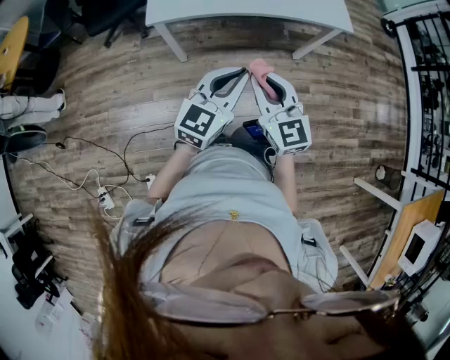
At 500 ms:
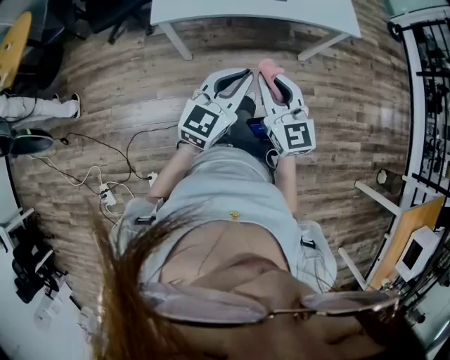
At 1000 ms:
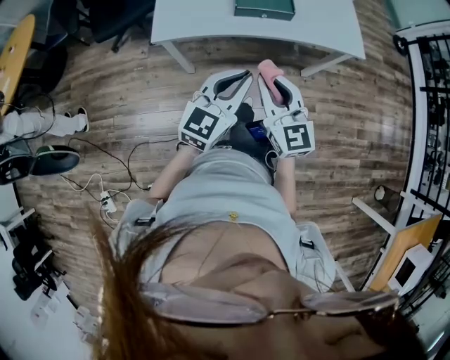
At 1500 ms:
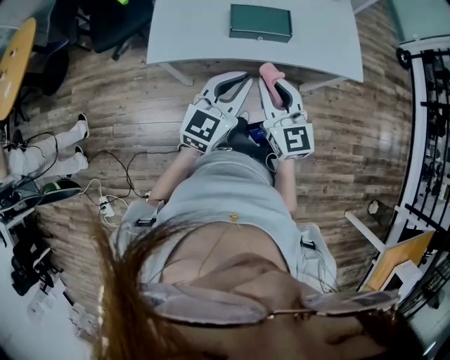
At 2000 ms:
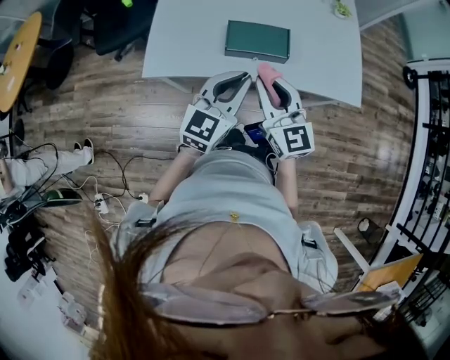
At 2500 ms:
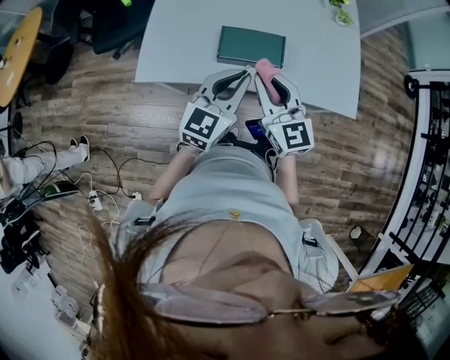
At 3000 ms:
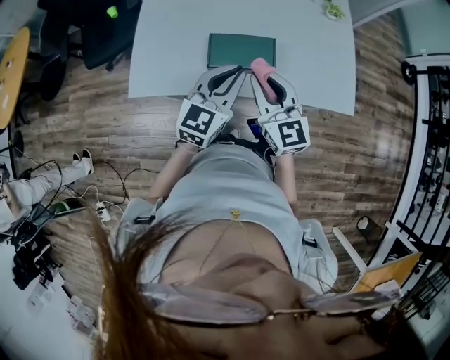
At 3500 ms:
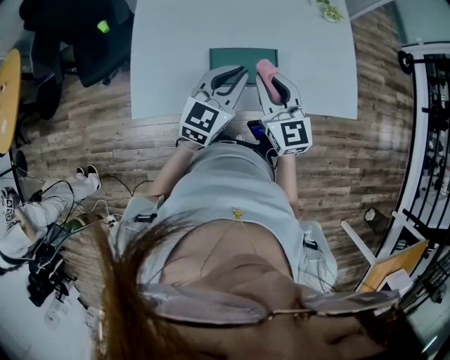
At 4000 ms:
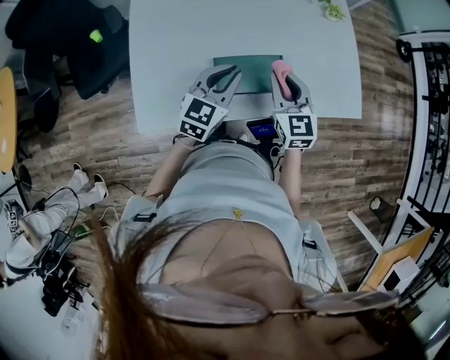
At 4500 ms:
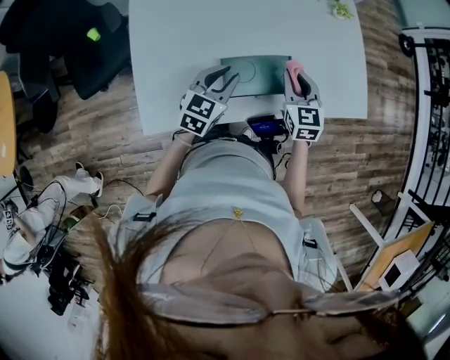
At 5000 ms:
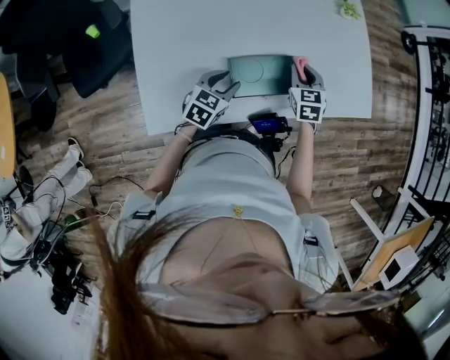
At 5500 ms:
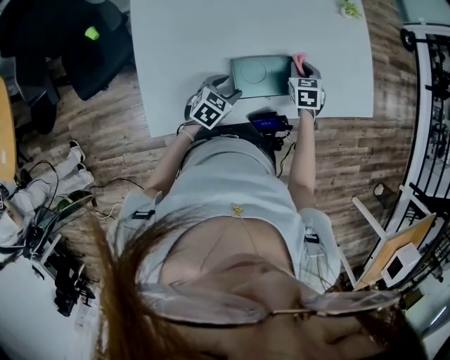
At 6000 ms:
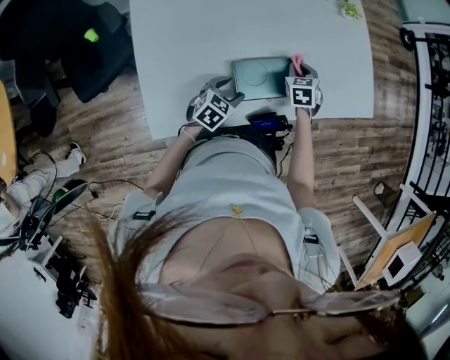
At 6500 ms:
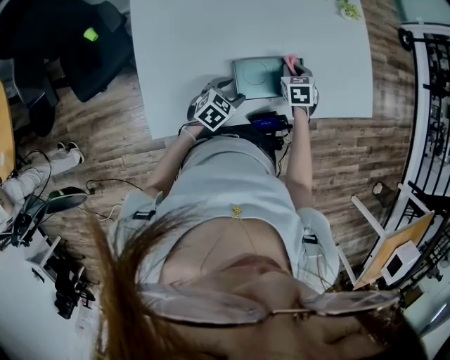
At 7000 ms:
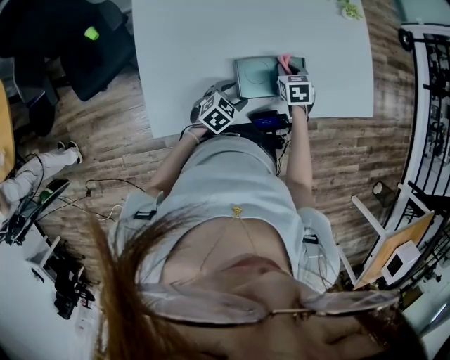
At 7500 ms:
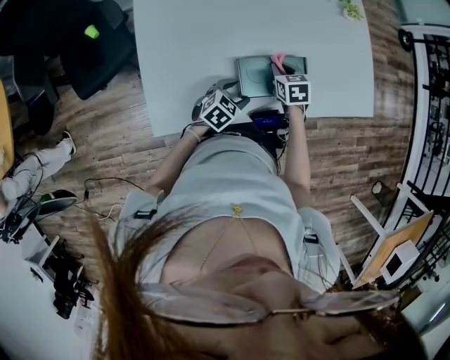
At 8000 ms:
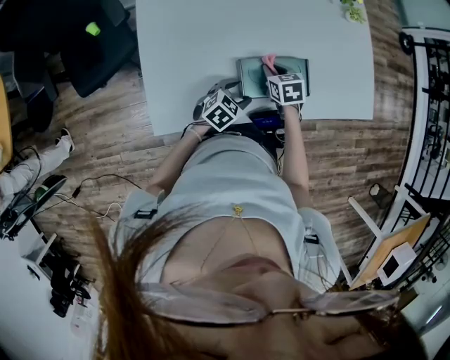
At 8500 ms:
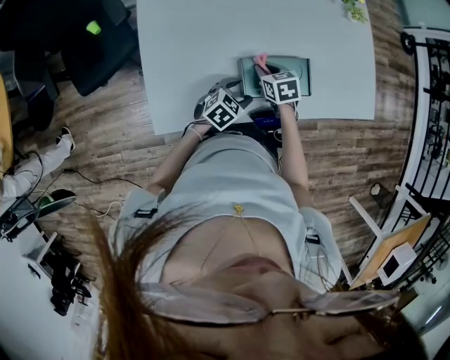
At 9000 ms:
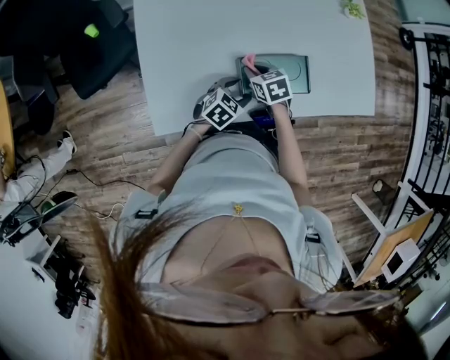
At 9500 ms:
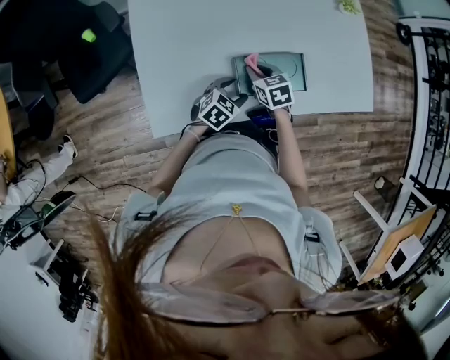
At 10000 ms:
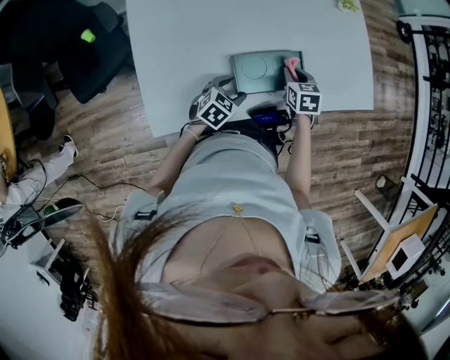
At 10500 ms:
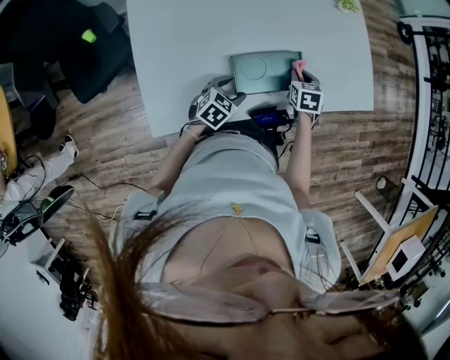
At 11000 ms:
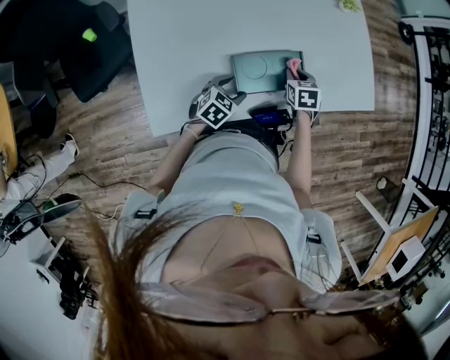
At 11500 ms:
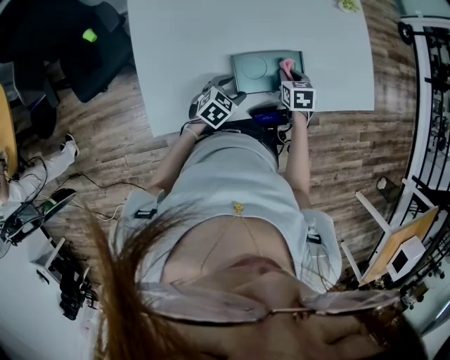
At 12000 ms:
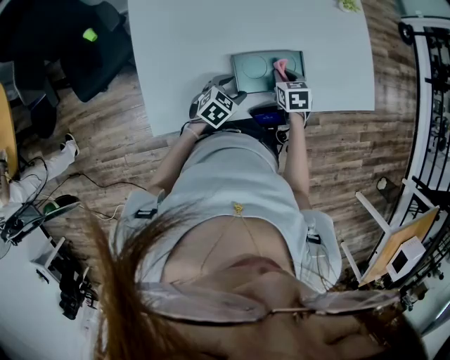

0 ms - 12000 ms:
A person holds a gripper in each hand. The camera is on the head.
0 ms - 2000 ms: Both grippers travel together forward, some 30 cm.
2000 ms - 4000 ms: The grippers both shift forward by roughly 20 cm. The right gripper changes its angle by roughly 20 degrees.
4000 ms - 6000 ms: The right gripper is displaced downward and forward by about 20 cm, and tips its fingers downward by about 30 degrees. The left gripper goes some 20 cm downward, swivels some 30 degrees, and opens its fingers.
6000 ms - 8000 ms: The right gripper moves to the left and backward, some 10 cm, and swivels about 20 degrees.
8000 ms - 10000 ms: The right gripper shifts about 10 cm to the right.
10000 ms - 12000 ms: The grippers make only small movements.

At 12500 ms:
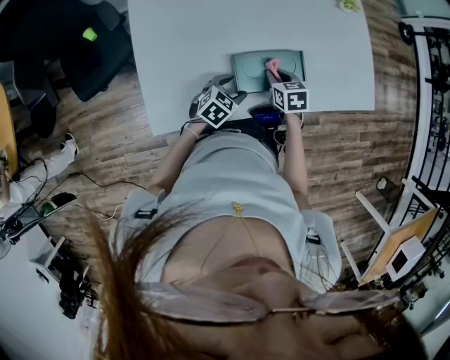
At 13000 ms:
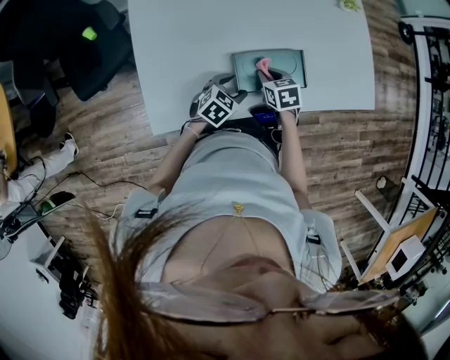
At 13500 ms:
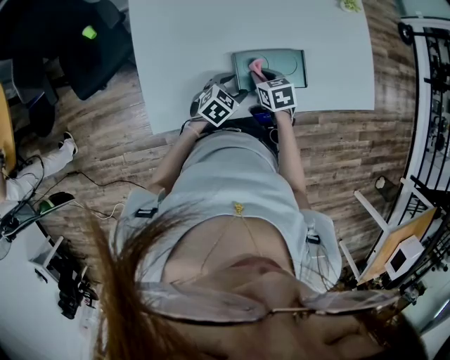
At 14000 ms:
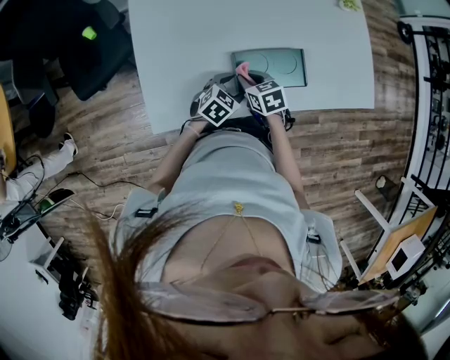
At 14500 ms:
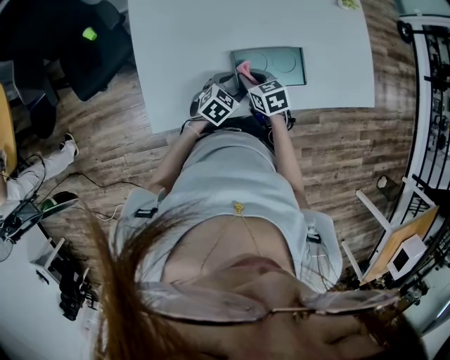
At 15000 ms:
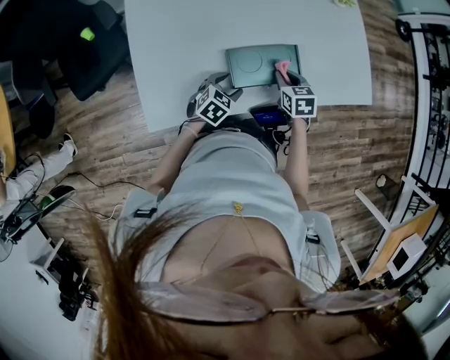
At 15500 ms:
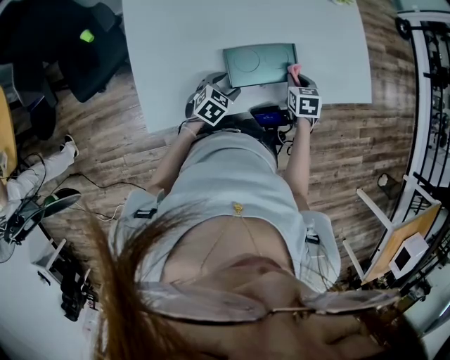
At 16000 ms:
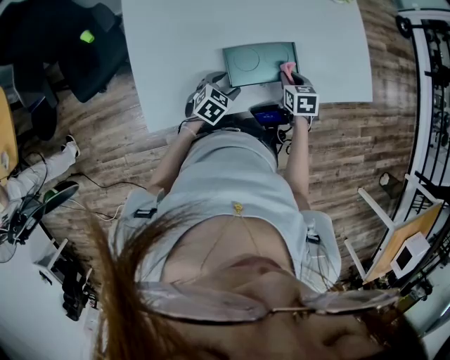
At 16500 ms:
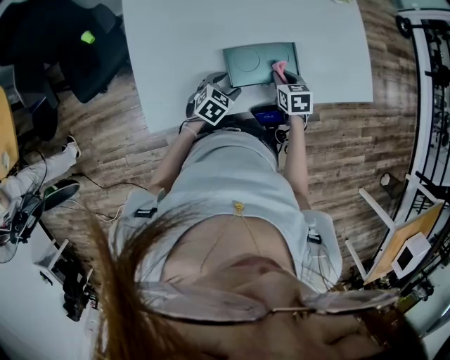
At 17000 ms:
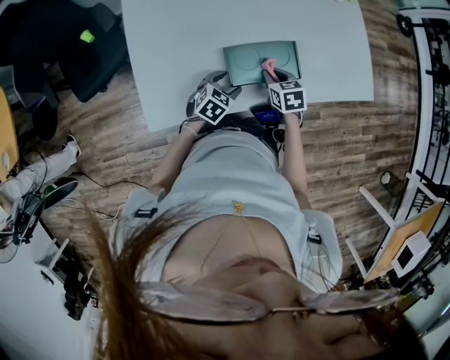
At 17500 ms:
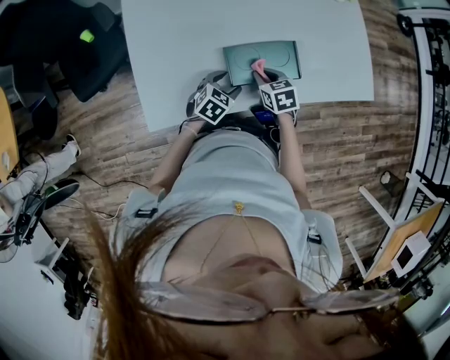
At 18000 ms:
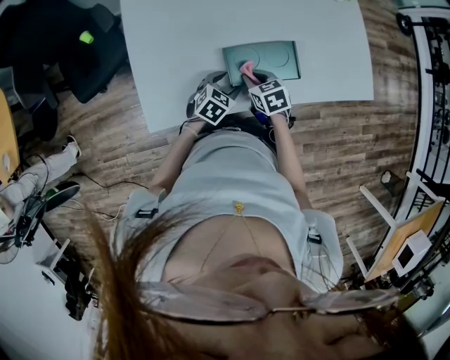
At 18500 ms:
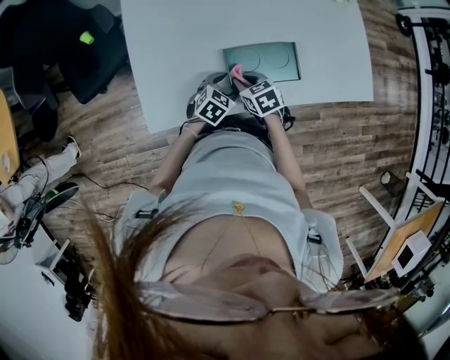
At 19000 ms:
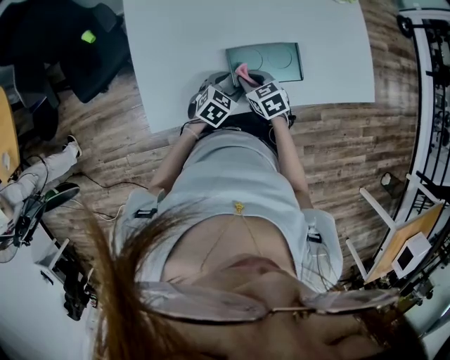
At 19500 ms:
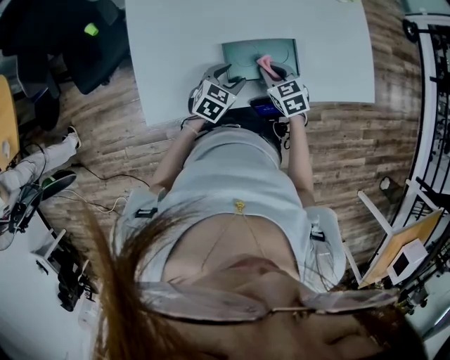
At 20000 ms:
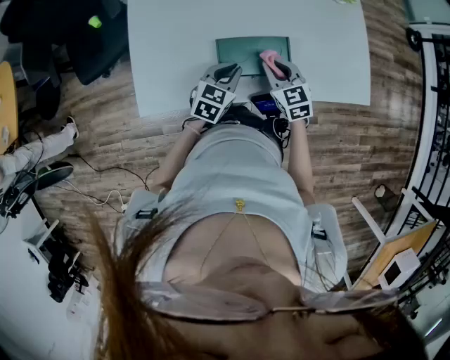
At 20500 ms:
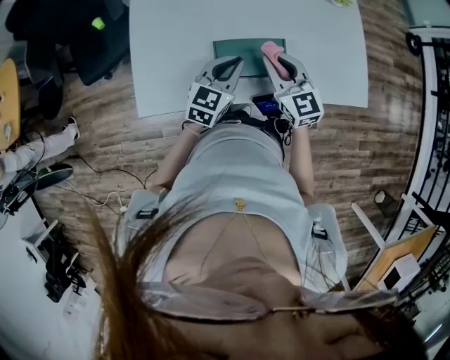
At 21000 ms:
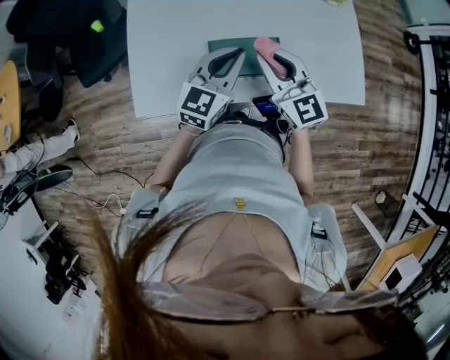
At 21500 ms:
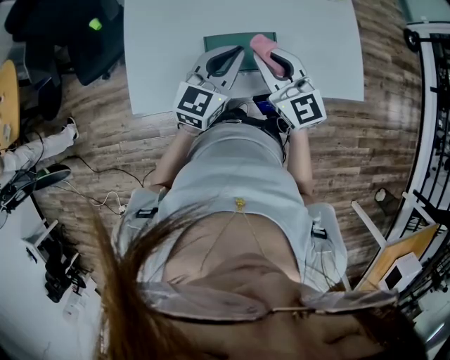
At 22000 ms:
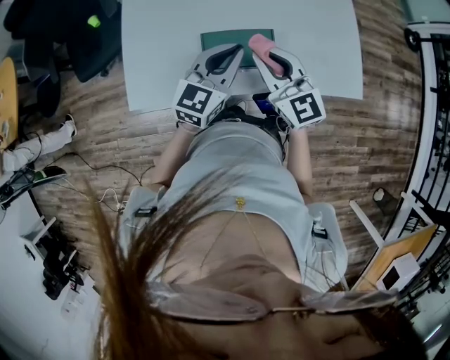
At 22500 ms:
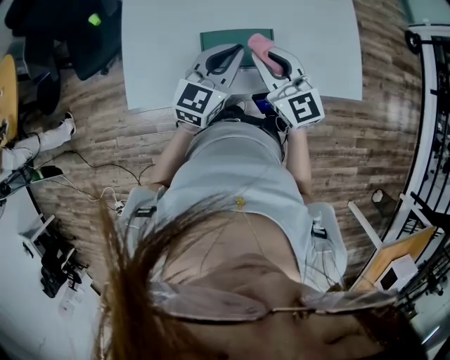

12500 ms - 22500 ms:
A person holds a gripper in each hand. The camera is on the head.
12500 ms - 14500 ms: The right gripper travels to the left by roughly 10 cm.
14500 ms - 16500 ms: The right gripper heads to the right, covering some 15 cm.
16500 ms - 18500 ms: The right gripper heads to the left, covering approximately 15 cm, and changes its angle by about 20 degrees.
18500 ms - 20500 ms: The left gripper moves upward, some 15 cm, turns by about 30 degrees, and closes its fingers. Meanwhile the right gripper goes roughly 20 cm upward and to the right, and points its fingers approximately 40 degrees further upward.
20500 ms - 22500 ms: Both grippers move upward, roughly 5 cm.

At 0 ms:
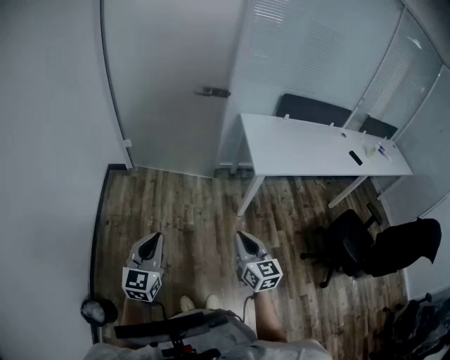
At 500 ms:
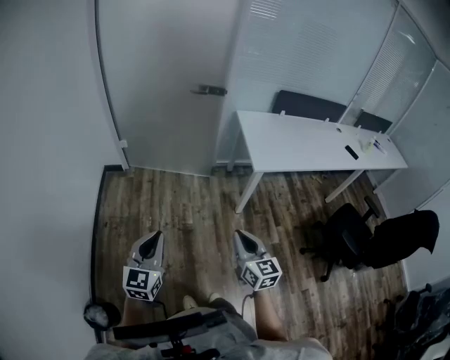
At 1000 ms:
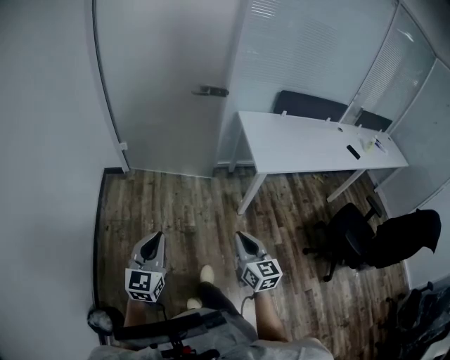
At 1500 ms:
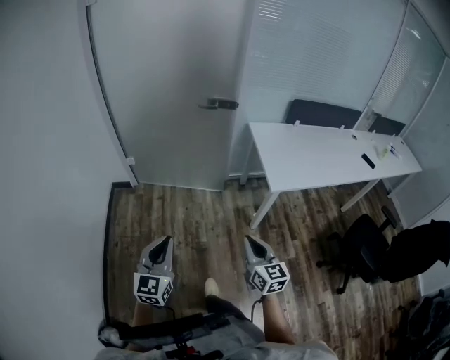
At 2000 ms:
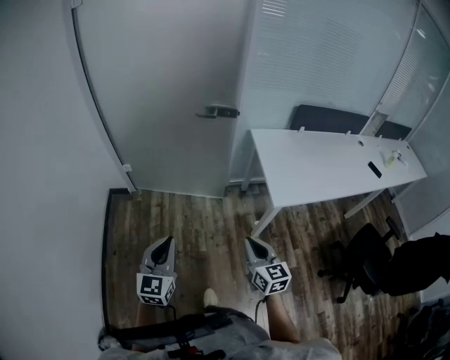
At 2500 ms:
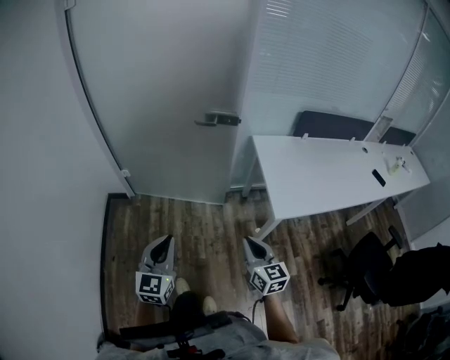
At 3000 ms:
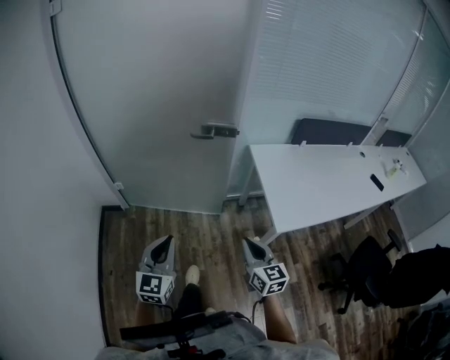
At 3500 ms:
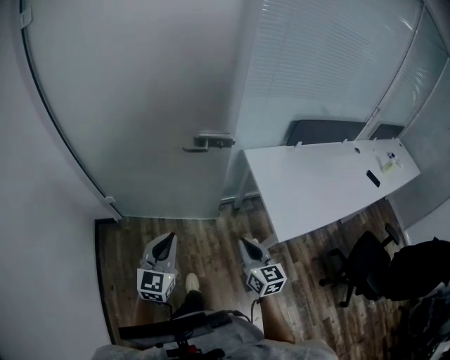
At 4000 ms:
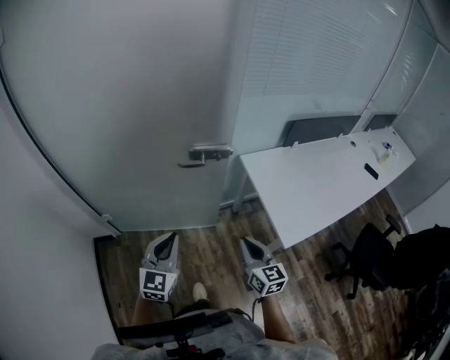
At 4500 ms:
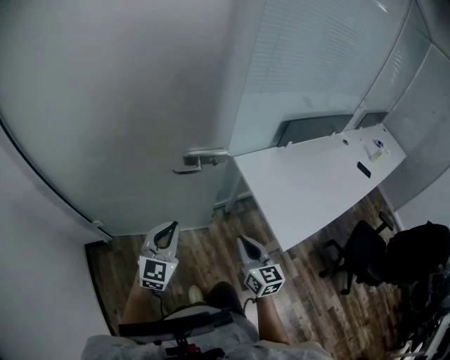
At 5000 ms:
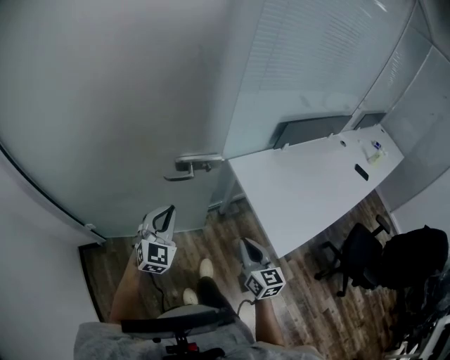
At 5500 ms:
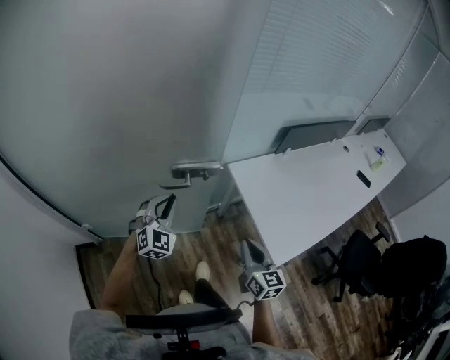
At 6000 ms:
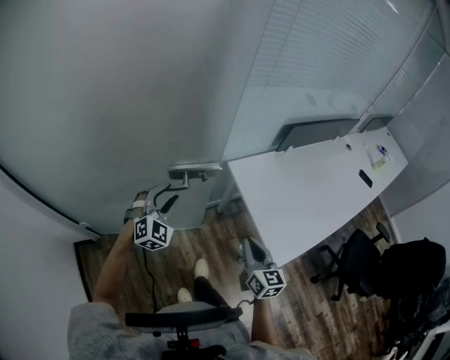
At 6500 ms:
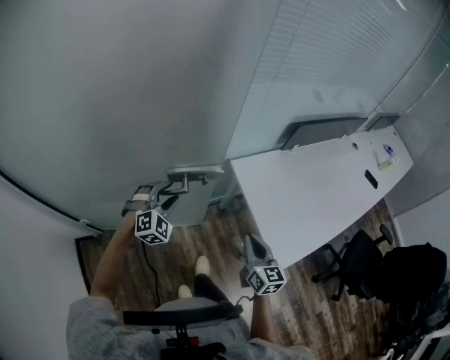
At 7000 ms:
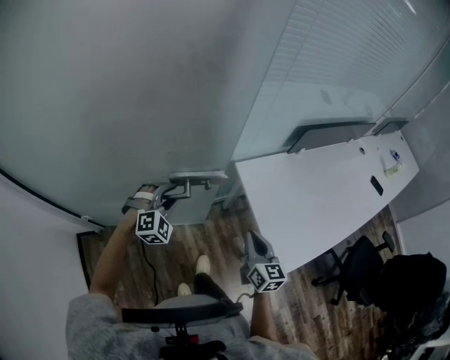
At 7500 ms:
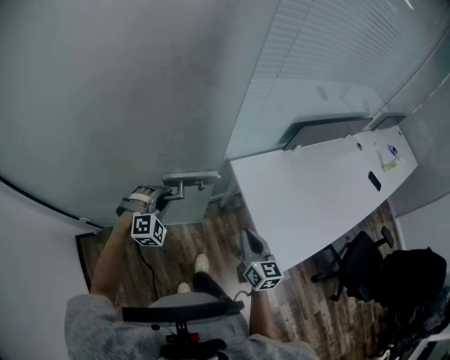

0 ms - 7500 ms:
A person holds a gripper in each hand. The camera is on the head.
0 ms - 2000 ms: Both grippers move forward, roughly 20 cm.
2000 ms - 4000 ms: The two grippers go approximately 30 cm forward.
4000 ms - 5500 ms: The left gripper is displaced forward by roughly 25 cm, and rotates about 30 degrees; the right gripper is displaced forward by approximately 10 cm.
5500 ms - 7500 ms: The right gripper is displaced forward by about 10 cm; the left gripper travels downward and forward by roughly 10 cm, swivels roughly 30 degrees, and opens and closes again.
